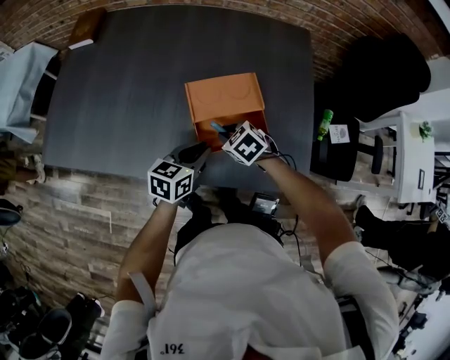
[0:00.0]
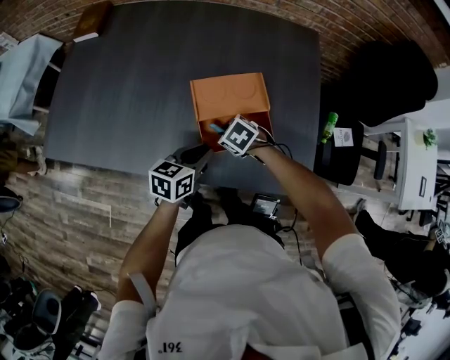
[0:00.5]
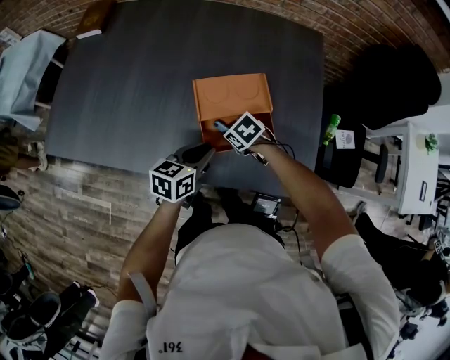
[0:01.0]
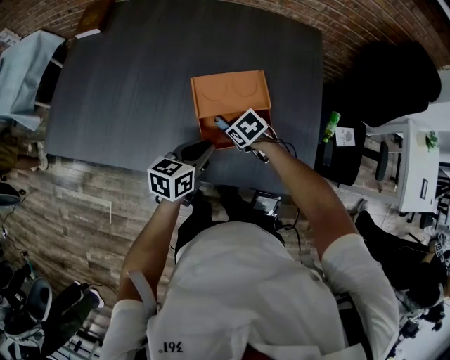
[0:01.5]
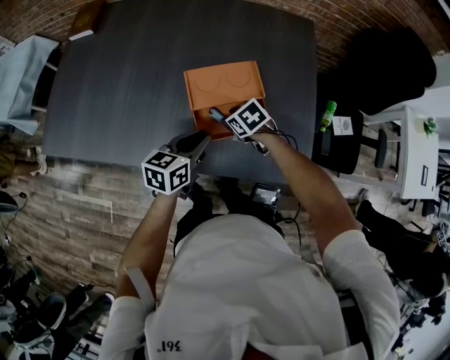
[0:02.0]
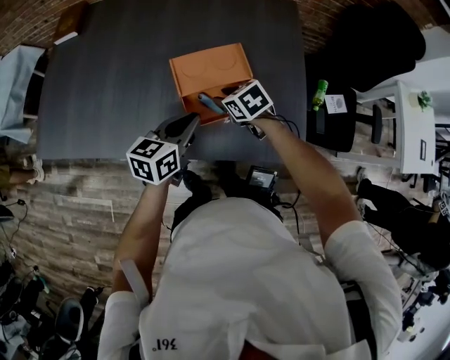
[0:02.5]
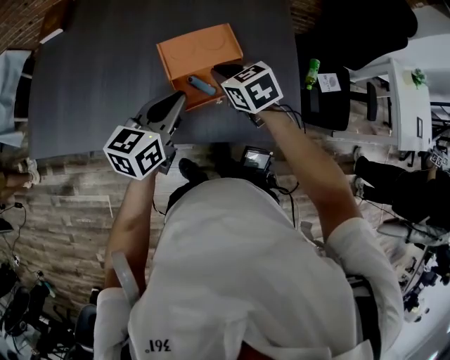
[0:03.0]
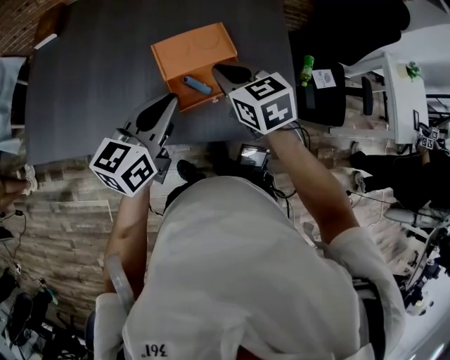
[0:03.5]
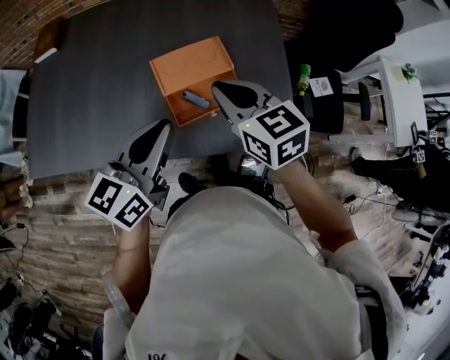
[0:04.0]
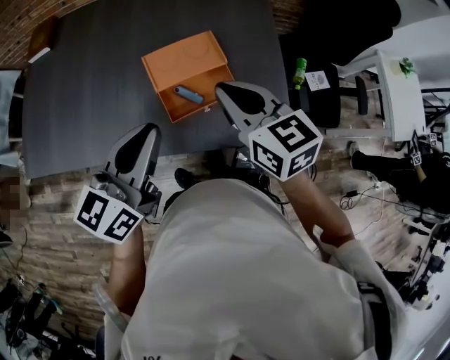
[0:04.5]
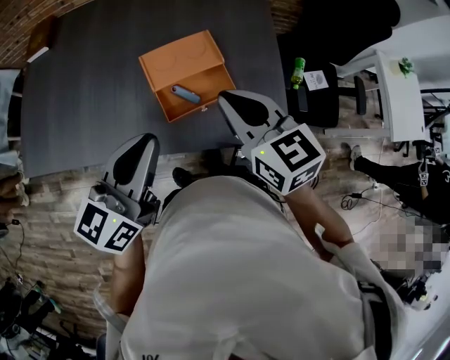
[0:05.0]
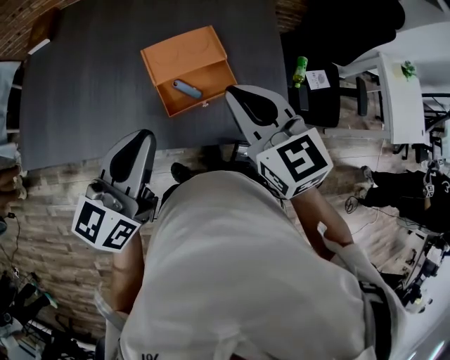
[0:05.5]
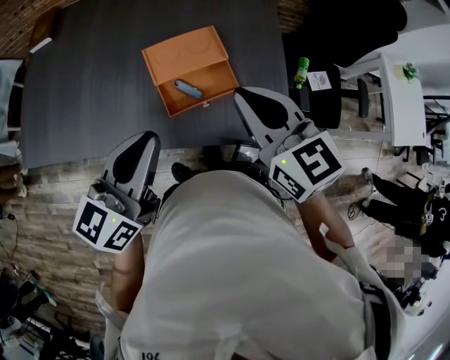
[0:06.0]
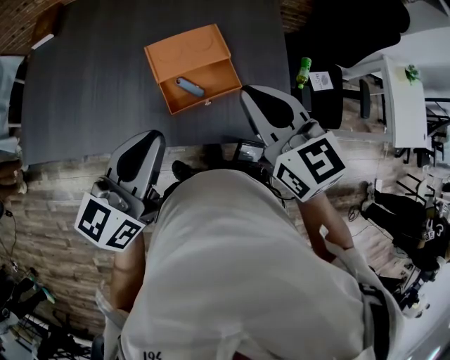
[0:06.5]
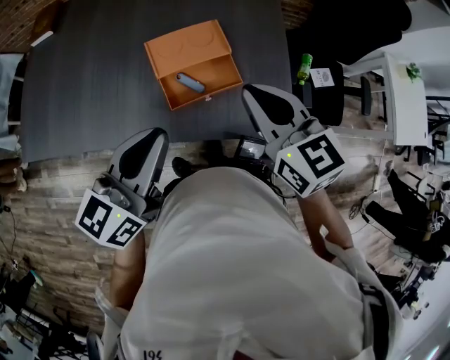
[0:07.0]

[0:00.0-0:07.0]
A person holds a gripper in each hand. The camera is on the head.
0:00.0 to 0:02.0: The right gripper opens.
0:02.0 to 0:03.5: The right gripper heads upward, covering approximately 20 cm, swivels approximately 40 degrees, and closes its fingers; the left gripper moves upward, approximately 15 cm.
0:03.5 to 0:05.0: Both grippers move upward and backward, approximately 10 cm.
0:05.0 to 0:07.0: The grippers move only a little.

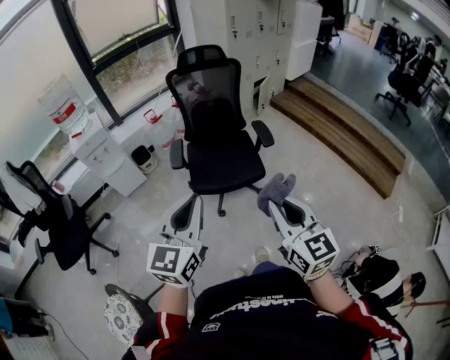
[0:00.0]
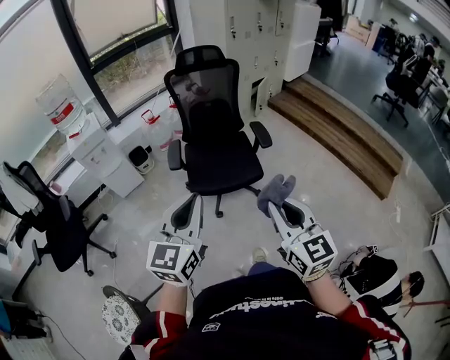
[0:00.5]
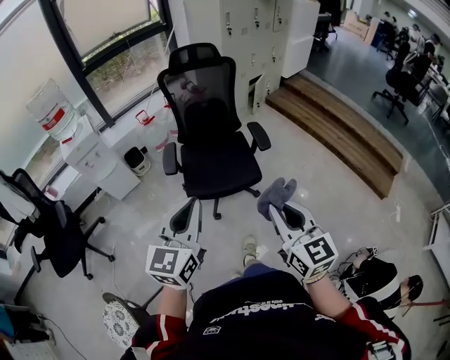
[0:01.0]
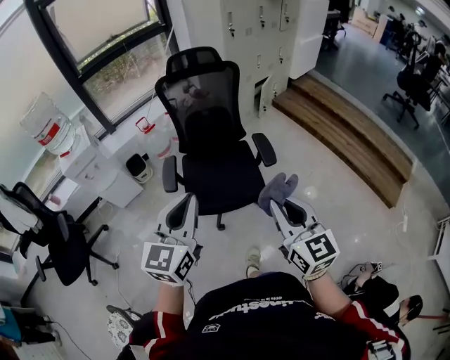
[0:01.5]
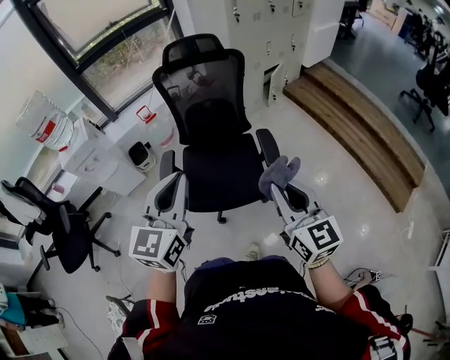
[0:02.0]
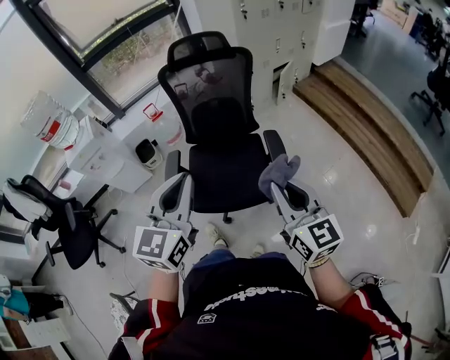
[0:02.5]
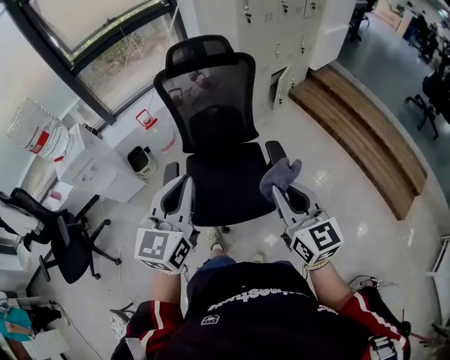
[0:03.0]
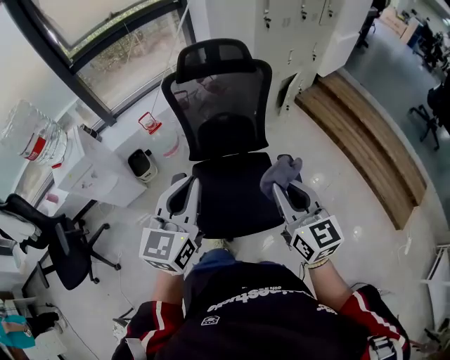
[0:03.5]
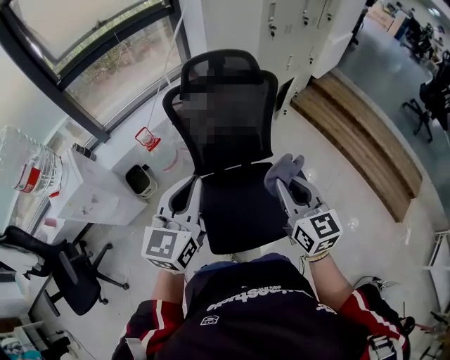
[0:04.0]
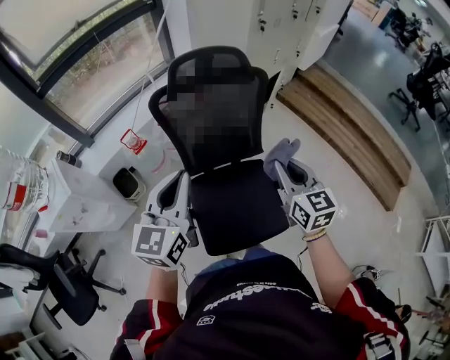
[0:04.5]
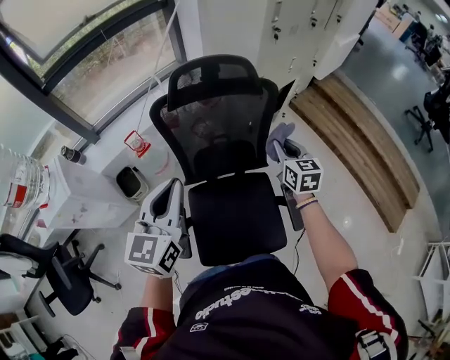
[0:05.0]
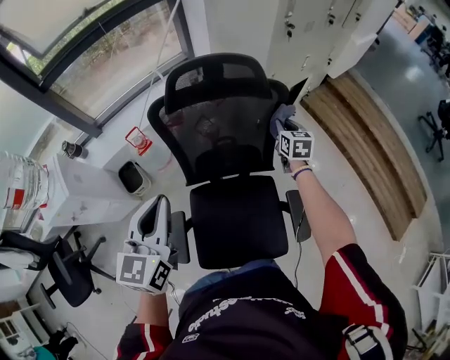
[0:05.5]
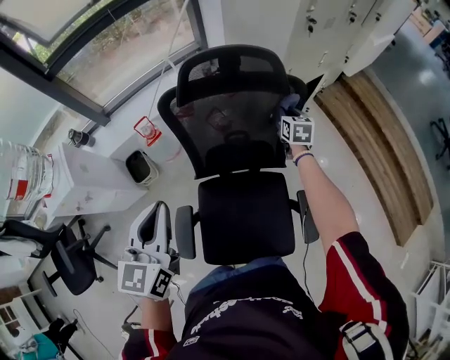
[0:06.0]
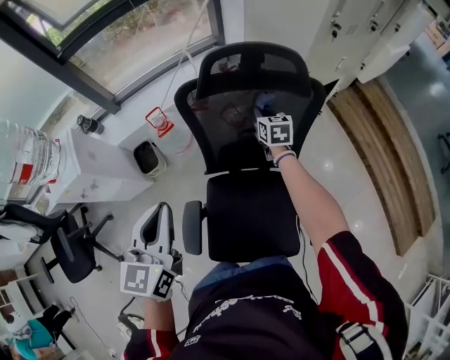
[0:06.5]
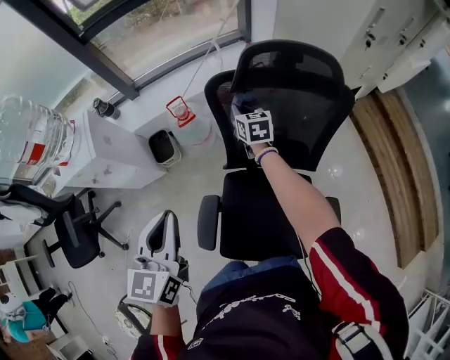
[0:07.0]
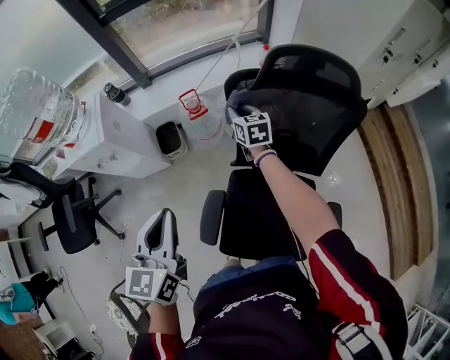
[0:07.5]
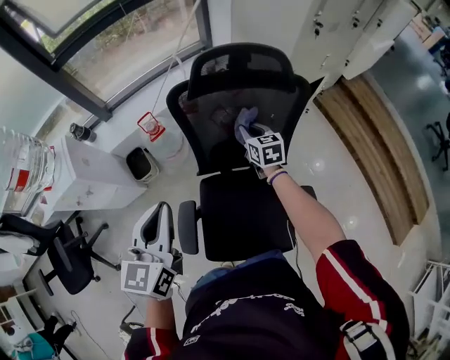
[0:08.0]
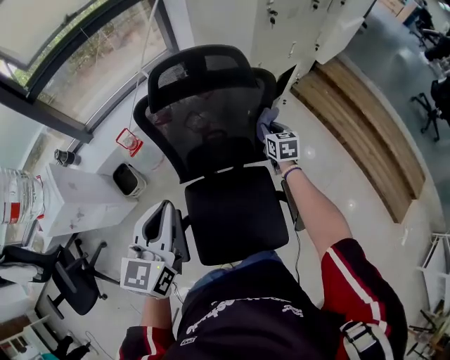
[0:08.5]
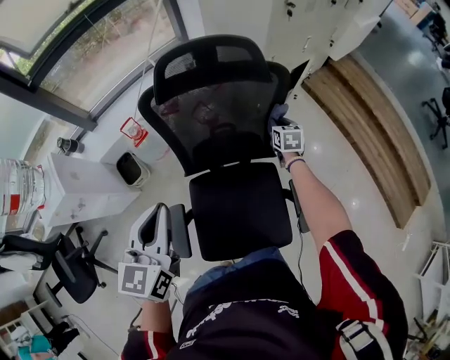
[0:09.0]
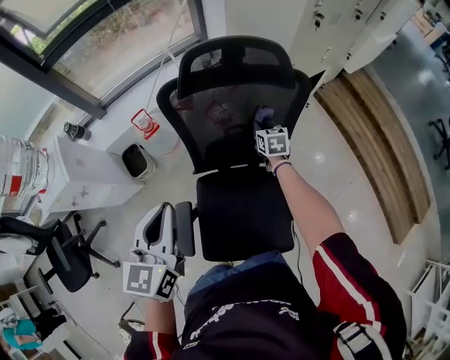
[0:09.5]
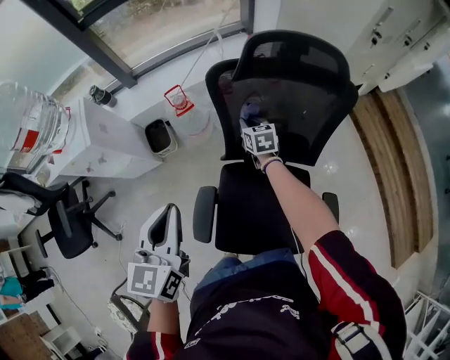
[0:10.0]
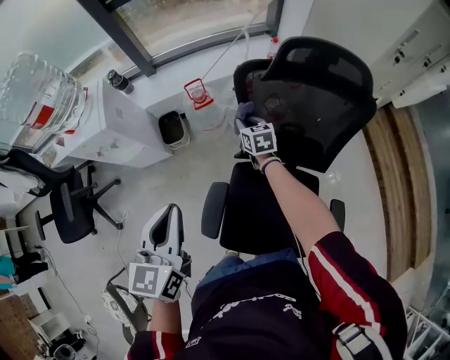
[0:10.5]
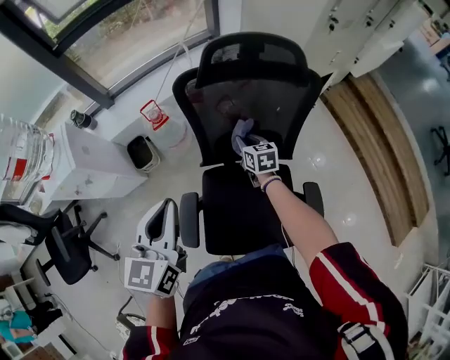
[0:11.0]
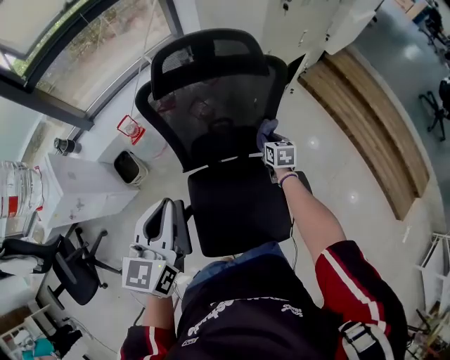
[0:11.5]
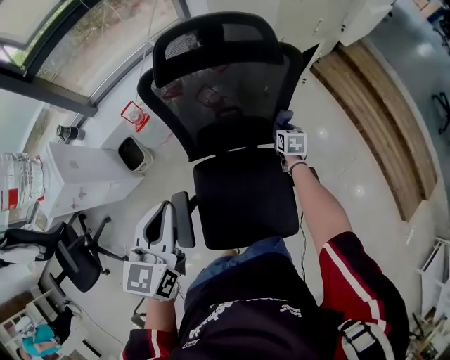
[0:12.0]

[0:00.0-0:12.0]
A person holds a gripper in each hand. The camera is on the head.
0:00.0 to 0:02.0: The grippers both shift forward by about 35 cm.
0:02.0 to 0:04.0: The two grippers go some 40 cm forward and to the left.
0:04.0 to 0:06.0: The right gripper shifts some 60 cm forward and downward, and rotates approximately 20 degrees. The left gripper is displaced forward by roughly 15 cm.
0:06.0 to 0:08.0: The left gripper moves roughly 15 cm to the left and comes back. Meanwhile the right gripper heads to the left, covering approximately 20 cm.
0:08.0 to 0:10.0: The left gripper shifts about 5 cm to the left. The right gripper is displaced to the left and downward by roughly 15 cm.
0:10.0 to 0:12.0: The right gripper ends up about 35 cm from where it was, and swivels roughly 30 degrees. Meanwhile the left gripper shifts by approximately 15 cm.

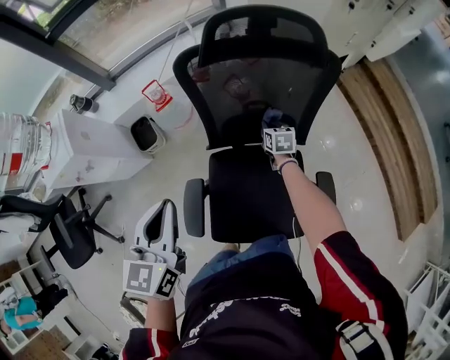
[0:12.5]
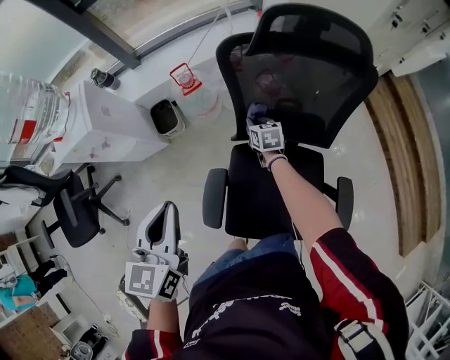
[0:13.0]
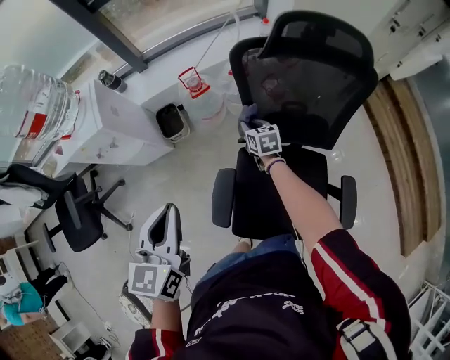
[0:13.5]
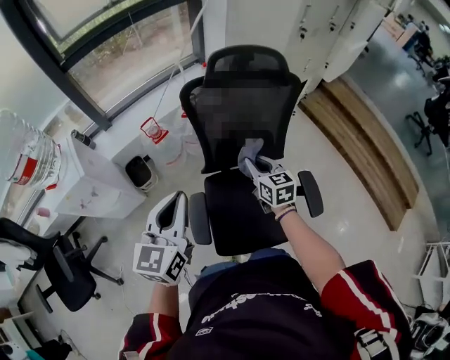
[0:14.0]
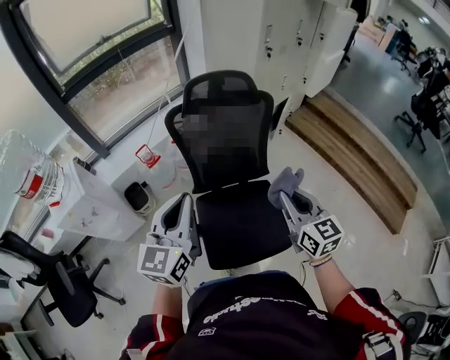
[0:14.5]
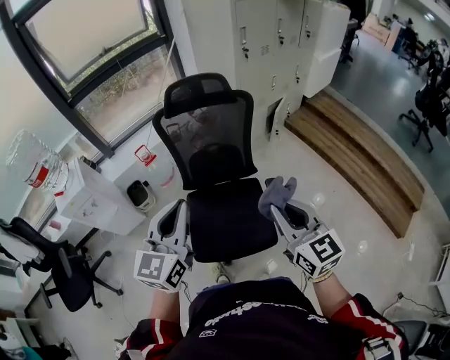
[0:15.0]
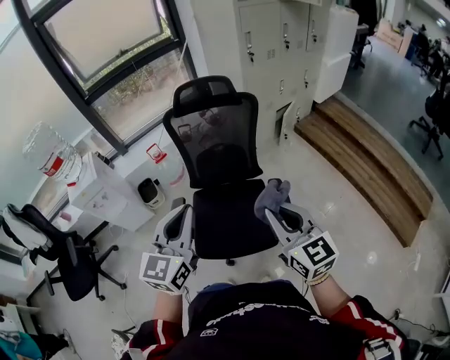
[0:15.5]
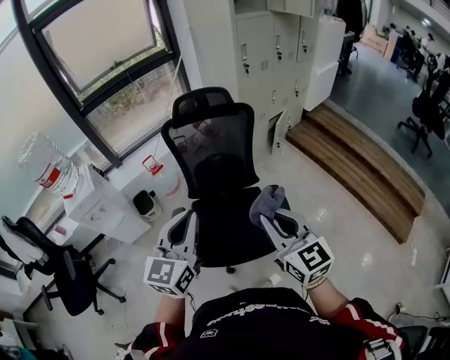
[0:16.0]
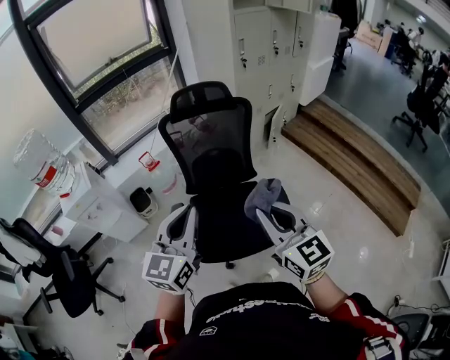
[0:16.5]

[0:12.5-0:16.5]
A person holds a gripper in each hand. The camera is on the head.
0:12.5 to 0:14.5: The left gripper moves upward and backward, approximately 20 cm, moves about 15 cm to the left and comes back, and swivels approximately 30 degrees, while the right gripper heads upward and backward, covering roughly 60 cm, and points its fingers some 30 degrees further upward.
0:14.5 to 0:16.5: The right gripper is displaced backward and upward by approximately 20 cm. Meanwhile the left gripper heads backward and to the right, covering some 25 cm.

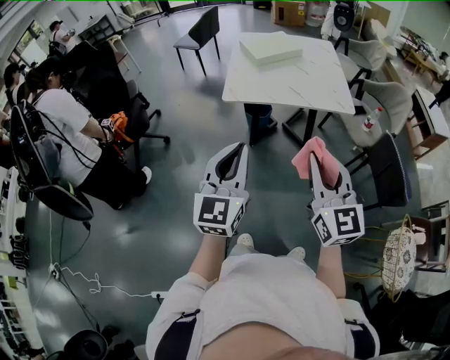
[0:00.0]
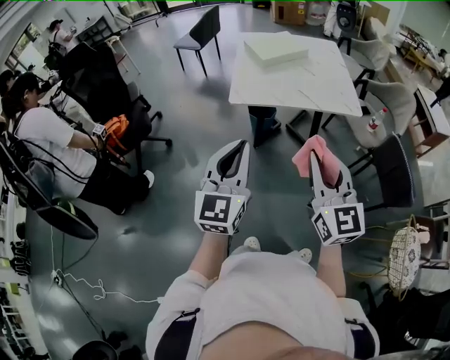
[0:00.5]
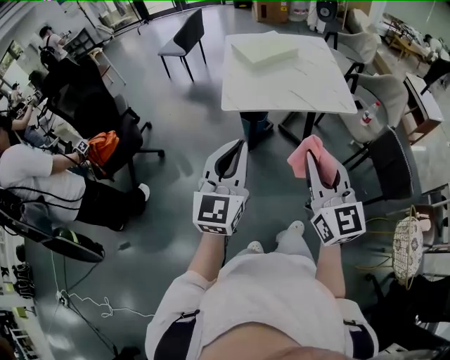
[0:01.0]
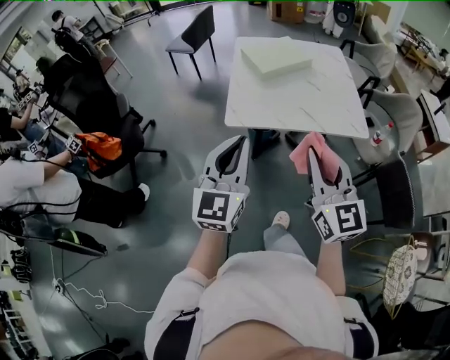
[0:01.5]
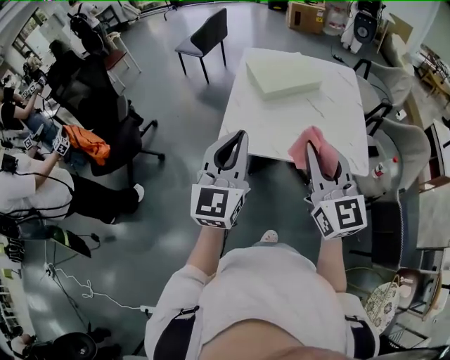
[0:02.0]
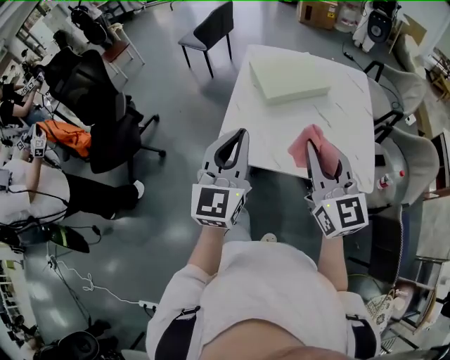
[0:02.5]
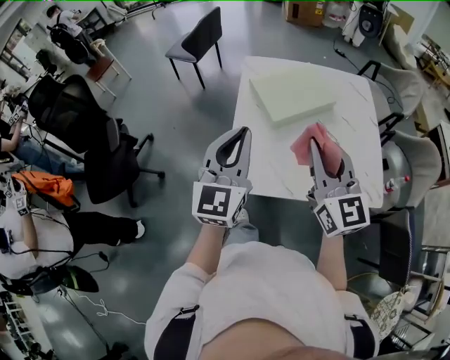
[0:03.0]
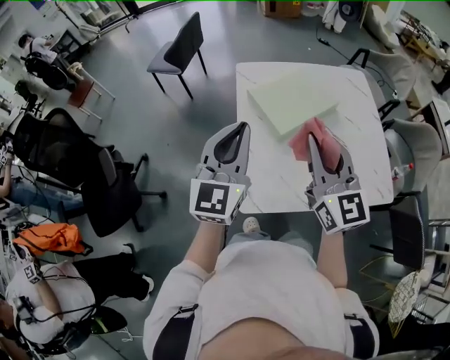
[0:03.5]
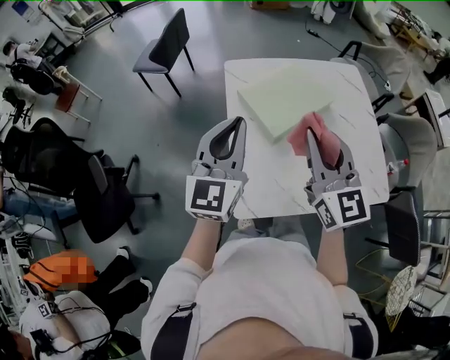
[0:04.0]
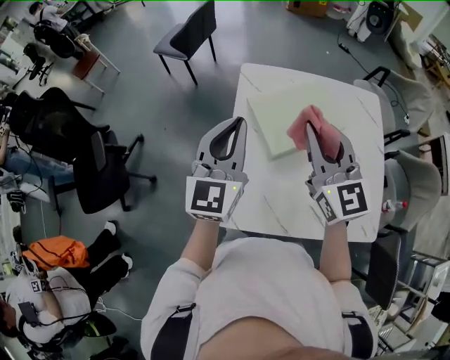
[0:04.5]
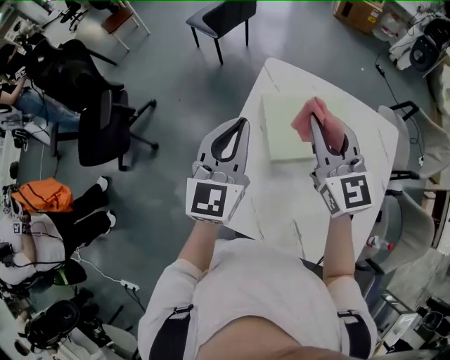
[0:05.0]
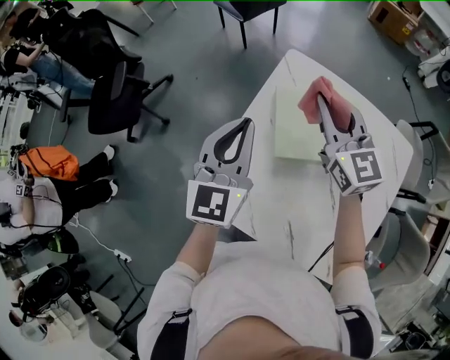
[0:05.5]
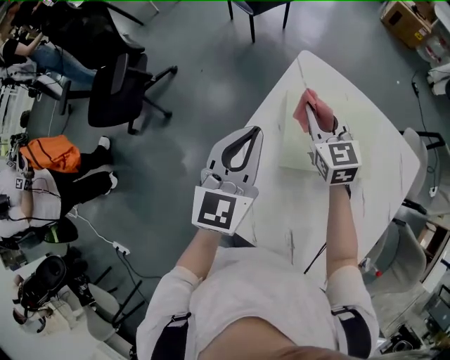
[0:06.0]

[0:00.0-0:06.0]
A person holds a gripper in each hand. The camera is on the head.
0:00.0 to 0:02.0: The two grippers go approximately 35 cm forward.
0:02.0 to 0:04.0: The two grippers go about 35 cm forward.
0:04.0 to 0:06.0: The right gripper shifts by some 30 cm, and rotates about 40 degrees. Meanwhile the left gripper moves about 10 cm, and turns by some 40 degrees.
